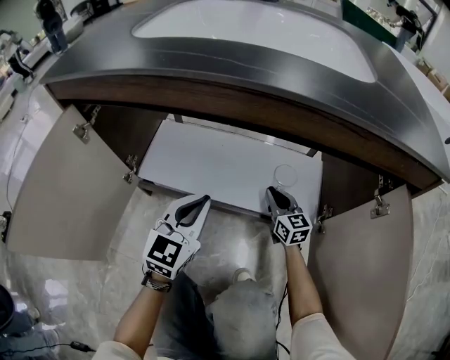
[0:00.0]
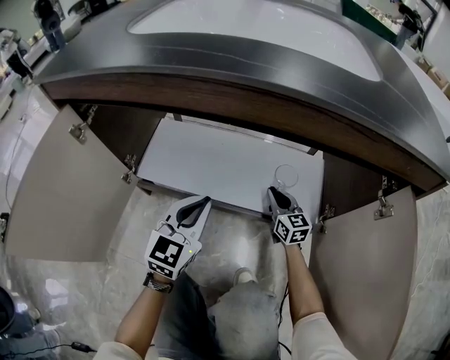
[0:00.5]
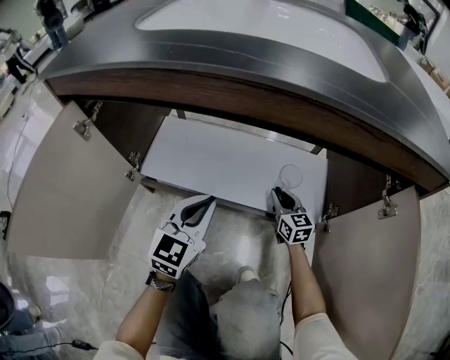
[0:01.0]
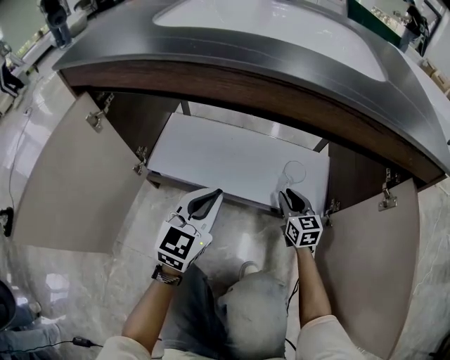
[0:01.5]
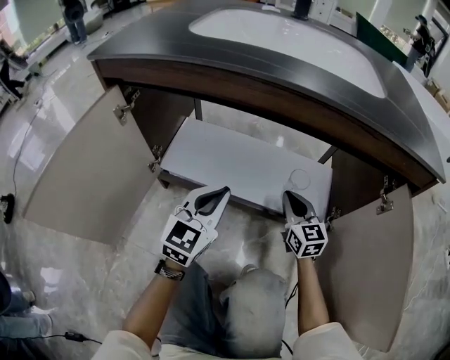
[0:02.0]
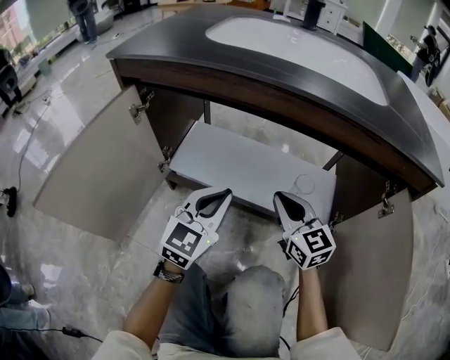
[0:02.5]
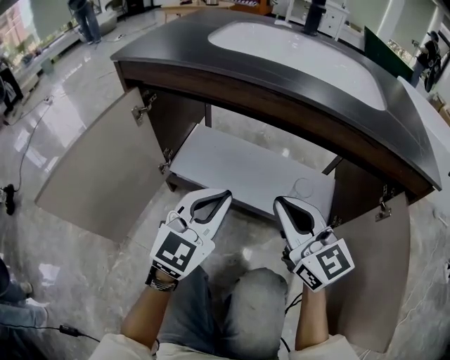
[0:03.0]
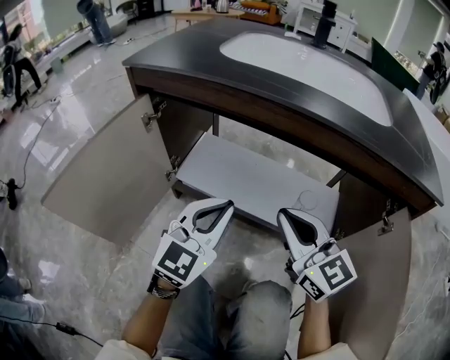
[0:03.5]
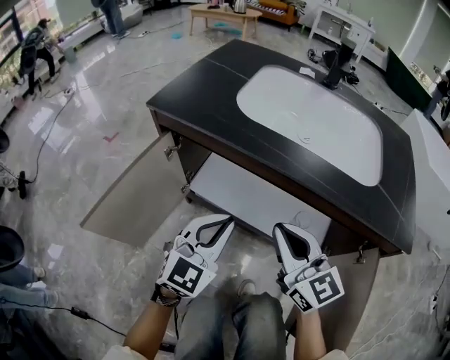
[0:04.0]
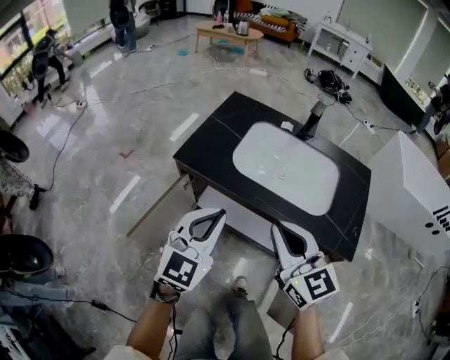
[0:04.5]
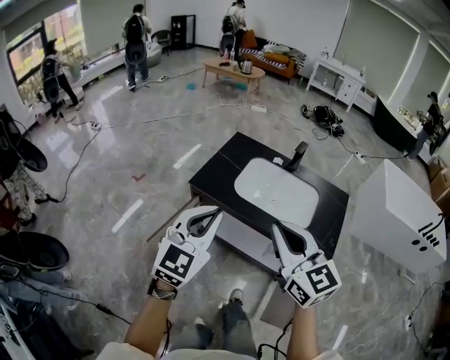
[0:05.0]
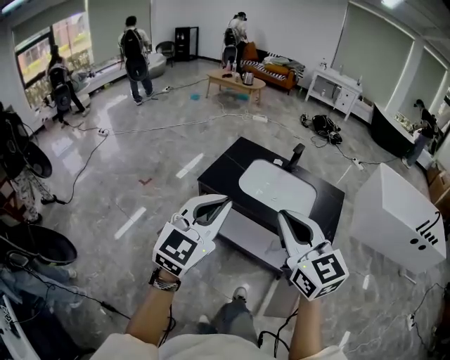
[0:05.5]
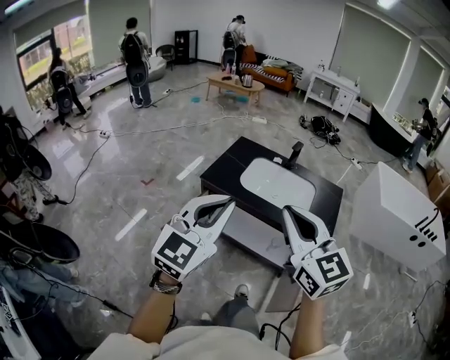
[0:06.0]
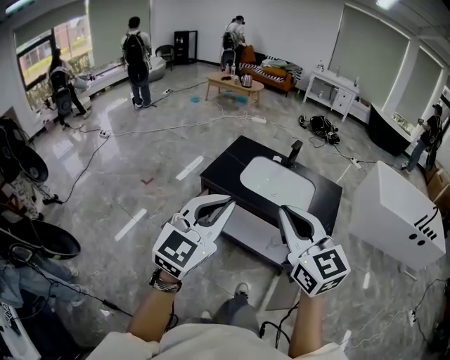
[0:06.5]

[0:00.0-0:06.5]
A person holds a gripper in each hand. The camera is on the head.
0:00.0 to 0:02.0: The right gripper shifts approximately 10 cm upward and backward.
0:02.0 to 0:04.5: Both grippers travel together upward, some 60 cm. The right gripper turns by approximately 20 degrees.
0:04.5 to 0:06.5: Both grippers travel together upward and backward, approximately 35 cm.

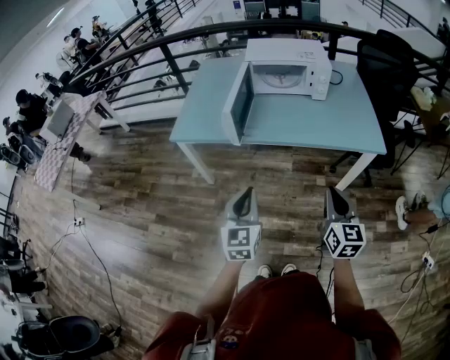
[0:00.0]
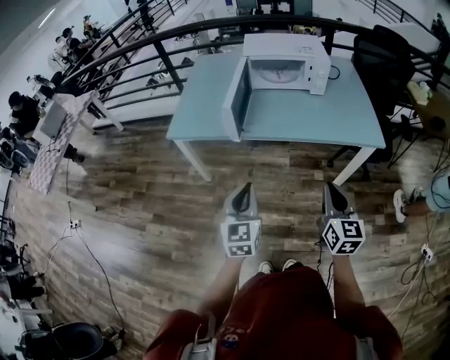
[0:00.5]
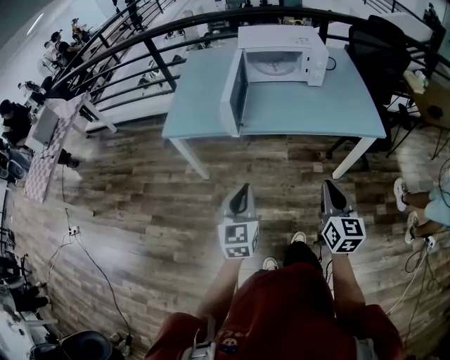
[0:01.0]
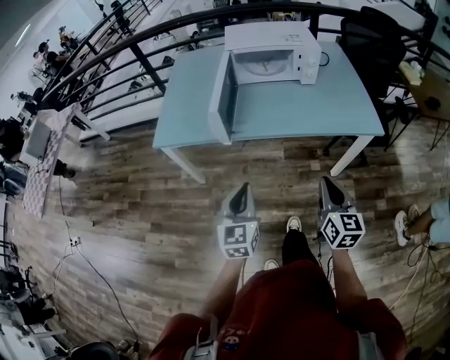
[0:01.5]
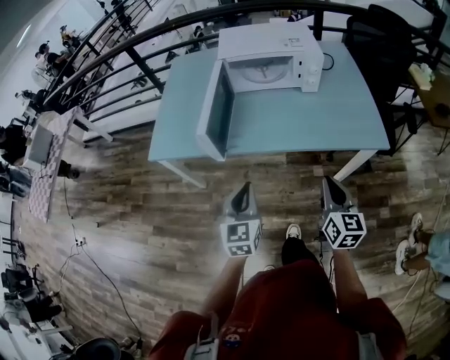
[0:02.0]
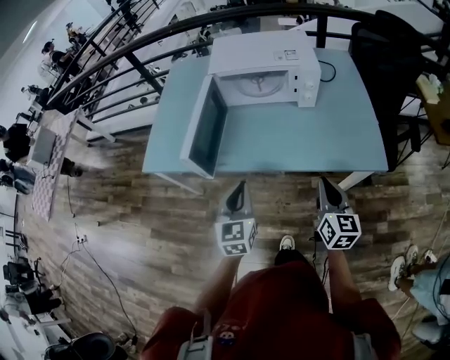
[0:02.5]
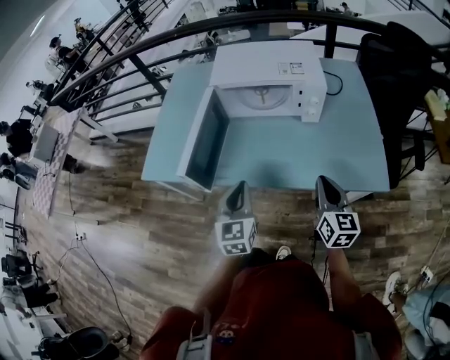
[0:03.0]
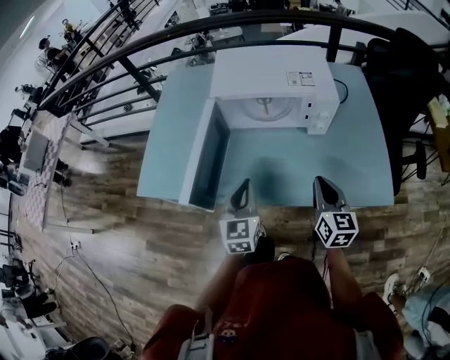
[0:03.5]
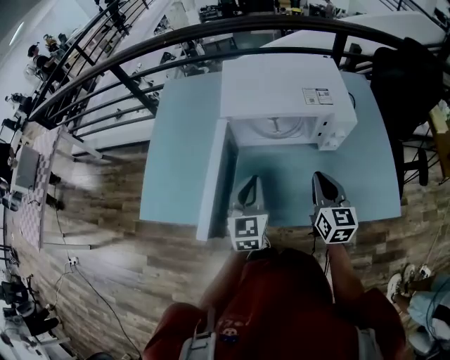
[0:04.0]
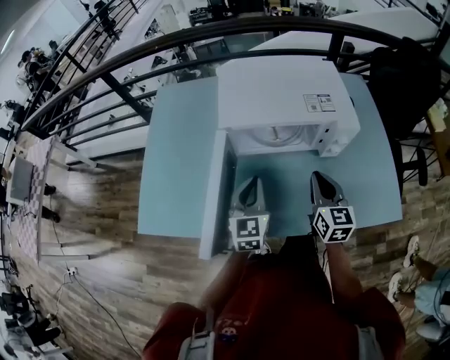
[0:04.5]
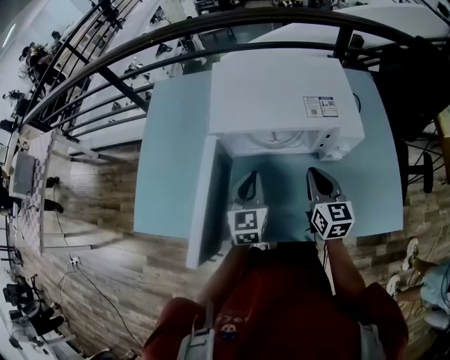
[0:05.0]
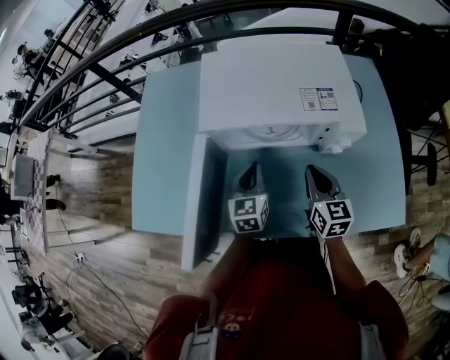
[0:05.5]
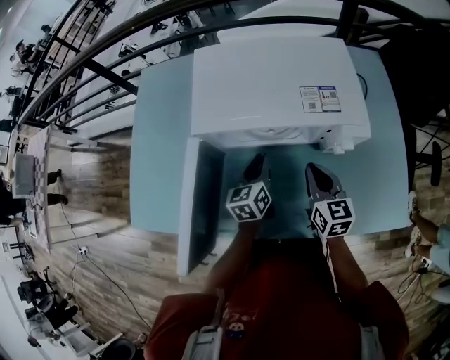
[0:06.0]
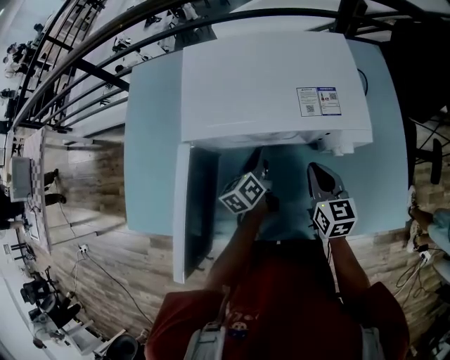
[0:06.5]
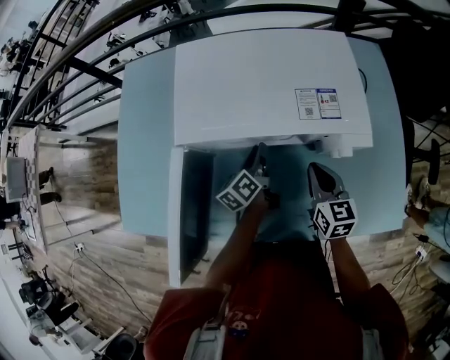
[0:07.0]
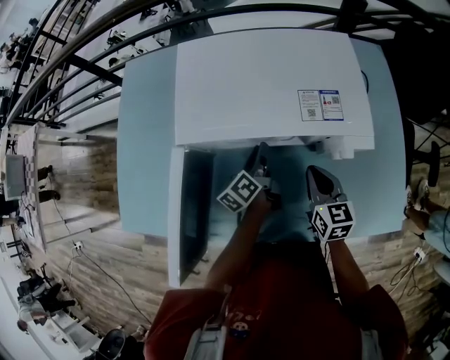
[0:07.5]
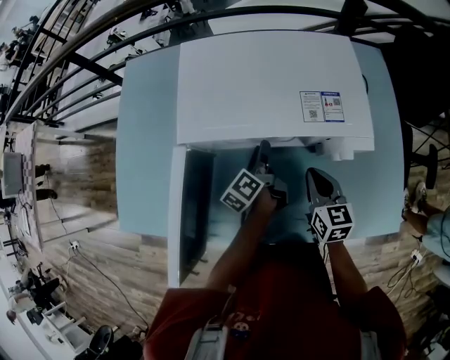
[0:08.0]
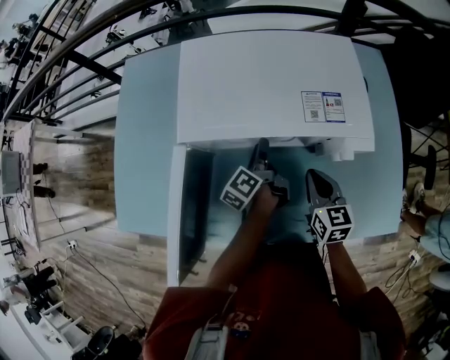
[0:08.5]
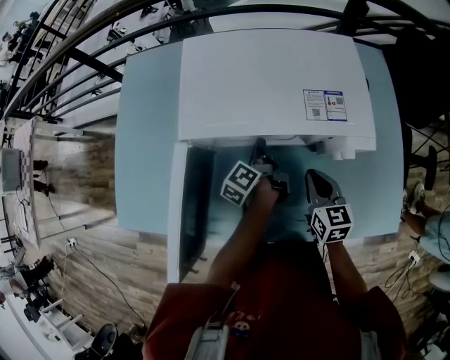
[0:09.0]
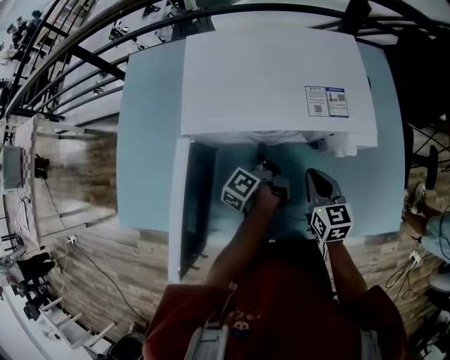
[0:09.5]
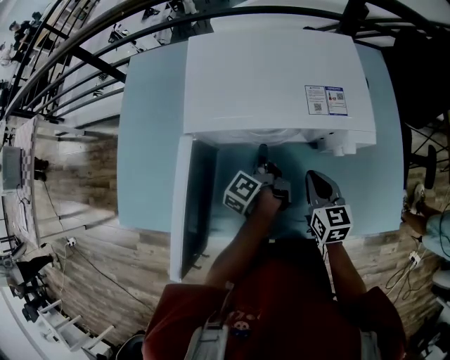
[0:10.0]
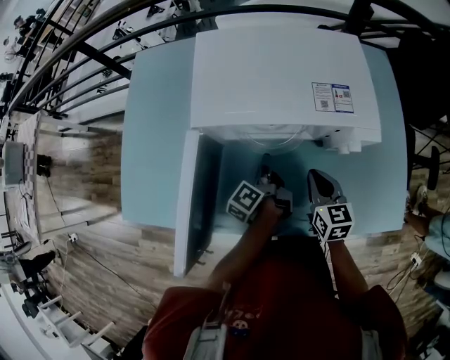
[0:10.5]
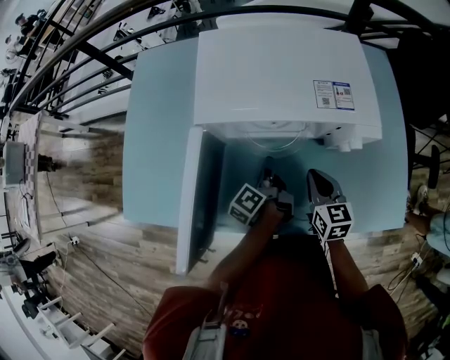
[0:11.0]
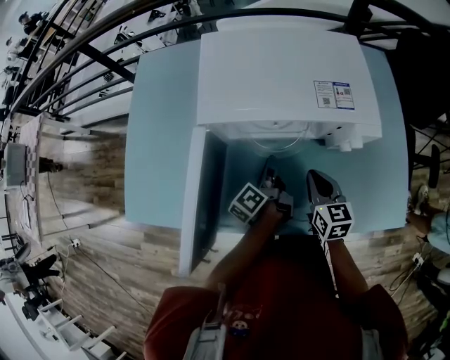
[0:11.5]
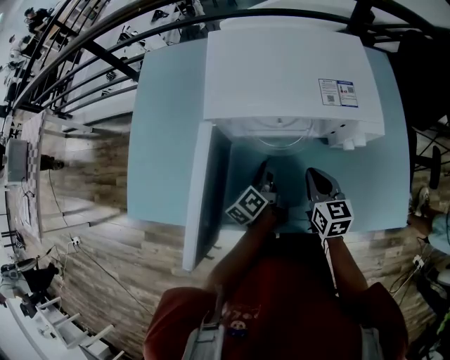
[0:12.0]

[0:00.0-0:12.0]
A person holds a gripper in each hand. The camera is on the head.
0:00.0 to 0:02.0: The grippers both shift forward by approximately 15 cm.
0:02.0 to 0:04.0: Both grippers move forward, approximately 35 cm.
0:04.0 to 0:06.0: The two grippers go roughly 15 cm forward and downward. The left gripper rotates some 30 degrees.
0:06.0 to 0:08.0: The left gripper heads forward, covering roughly 5 cm, rolls counterclockwise, seen from behind, by approximately 40 degrees, and opens.
0:08.0 to 0:10.0: The left gripper closes its fingers.
0:10.0 to 0:12.0: The left gripper goes roughly 5 cm backward, and opens up.

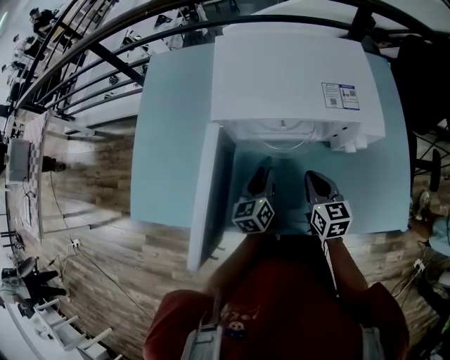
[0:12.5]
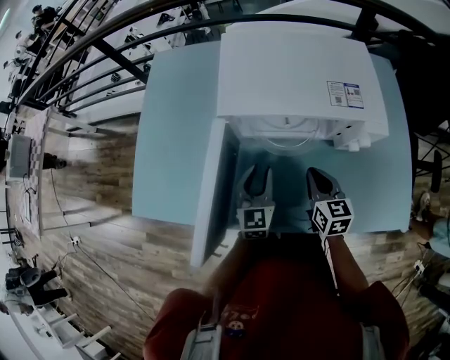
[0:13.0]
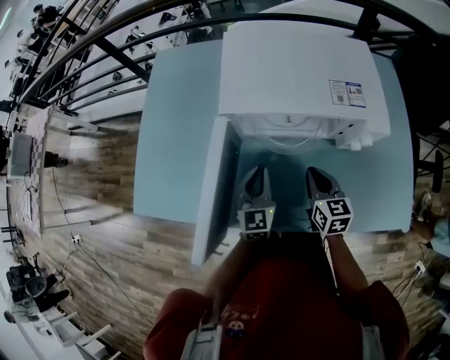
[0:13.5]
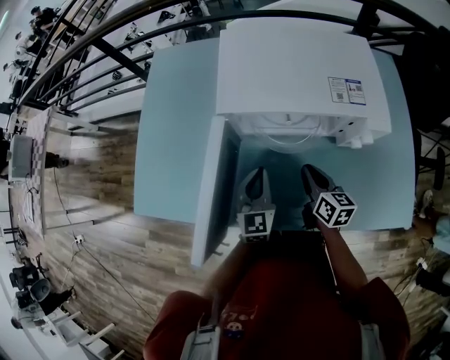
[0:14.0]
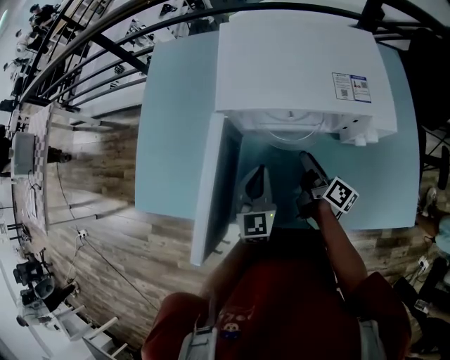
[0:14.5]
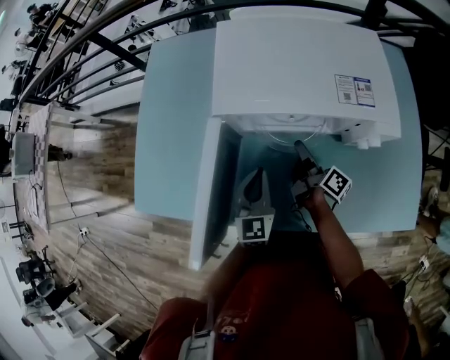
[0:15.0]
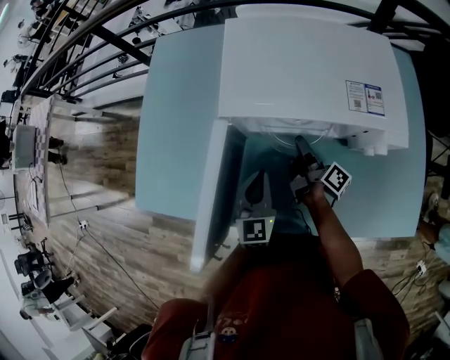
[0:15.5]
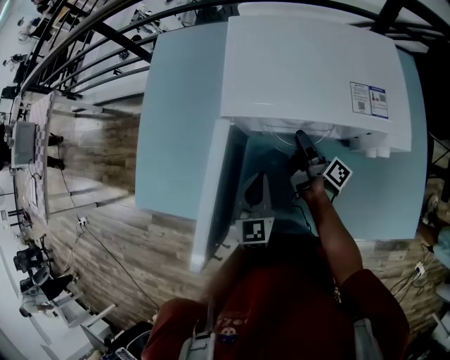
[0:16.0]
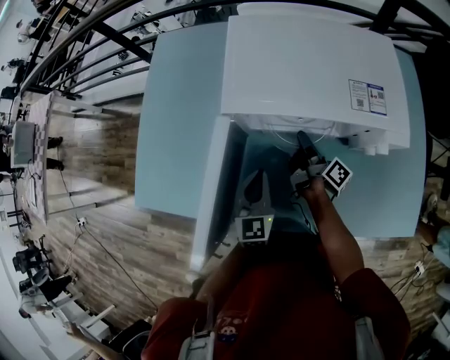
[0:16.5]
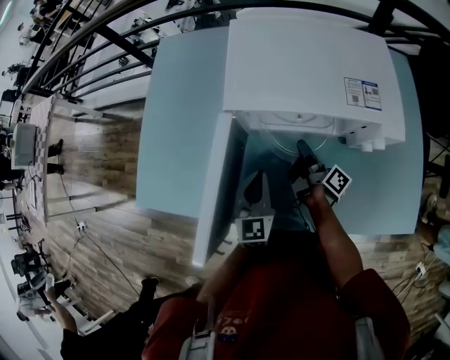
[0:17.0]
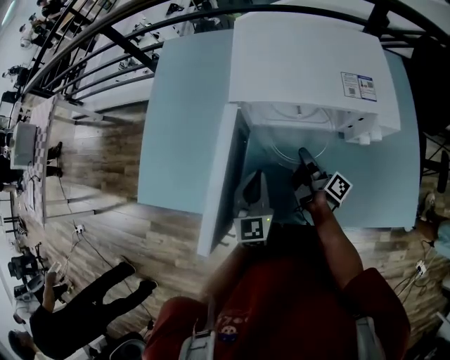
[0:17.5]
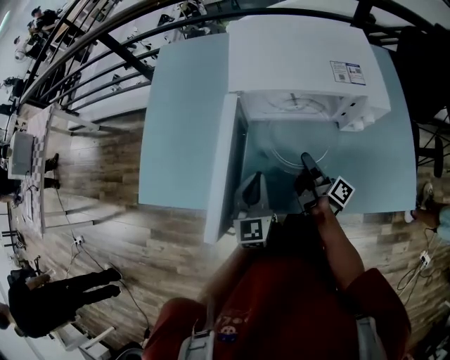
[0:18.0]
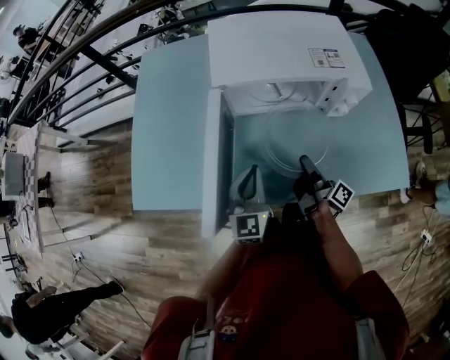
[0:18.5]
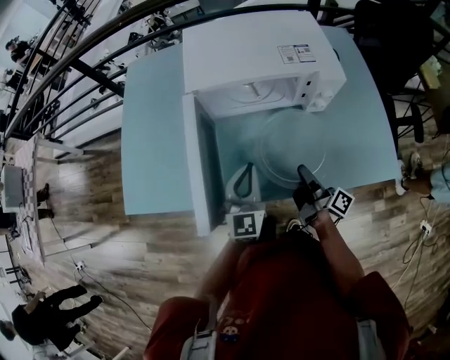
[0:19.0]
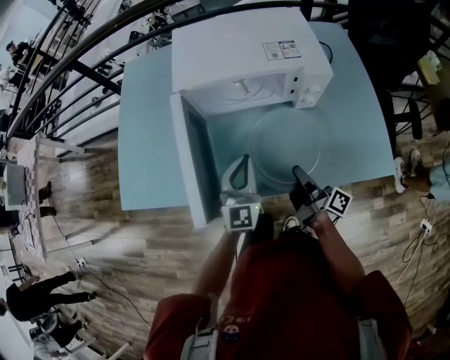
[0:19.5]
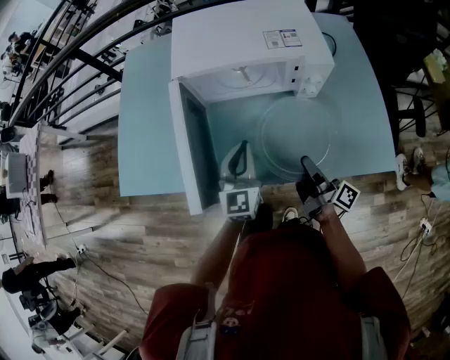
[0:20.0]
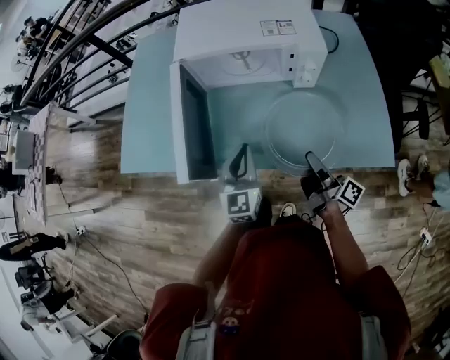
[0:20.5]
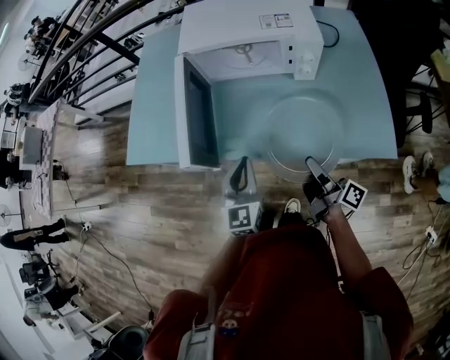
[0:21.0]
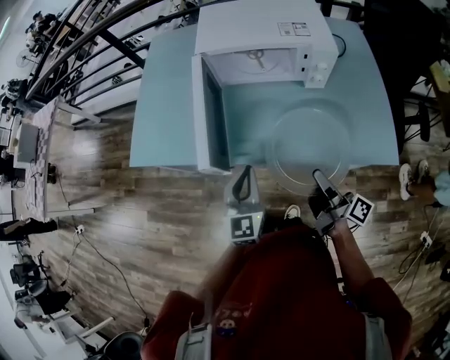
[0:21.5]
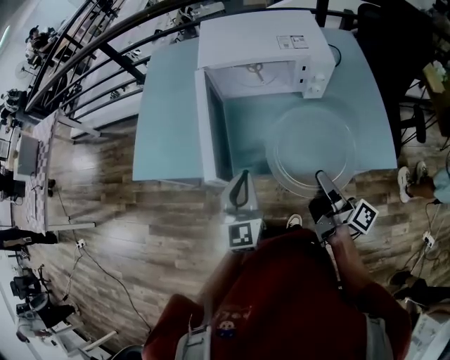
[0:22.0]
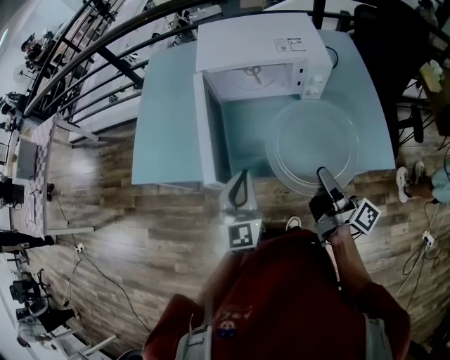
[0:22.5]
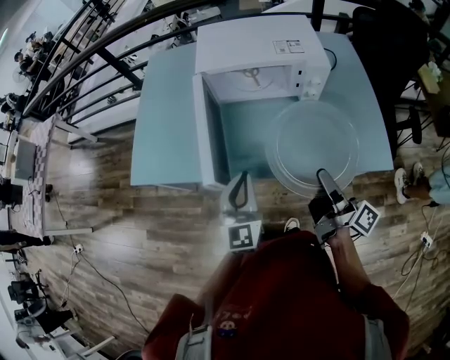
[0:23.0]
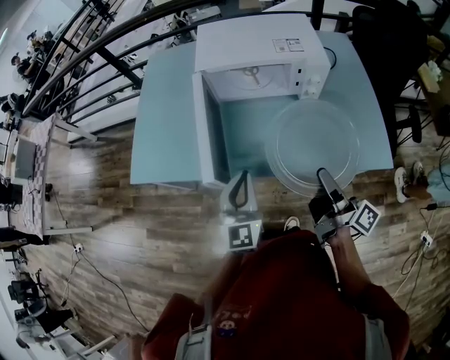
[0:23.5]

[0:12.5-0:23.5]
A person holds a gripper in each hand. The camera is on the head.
0:12.5 to 0:14.5: The left gripper goes about 5 cm upward, changes its angle by roughly 30 degrees, and closes up; the right gripper changes place by about 5 cm, rotates around the line of its fingers by about 50 degrees, clockwise from behind, and opens its fingers.
0:14.5 to 0:16.0: The right gripper travels forward by approximately 10 cm, and rotates about 20 degrees.
0:16.0 to 0:18.0: The right gripper shifts about 15 cm backward, and closes its fingers; the left gripper shifts roughly 10 cm backward.
0:18.0 to 0:20.0: The left gripper heads to the right, covering some 10 cm. The right gripper heads backward and to the right, covering some 20 cm.
0:20.0 to 0:21.5: The grippers both shift backward by some 15 cm.
0:21.5 to 0:23.5: The right gripper shifts approximately 10 cm upward, while the left gripper heads upward, covering about 5 cm.
